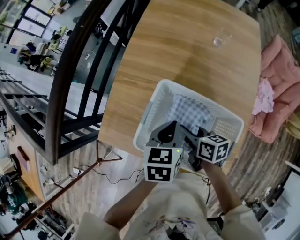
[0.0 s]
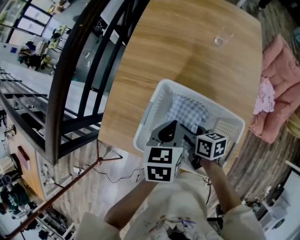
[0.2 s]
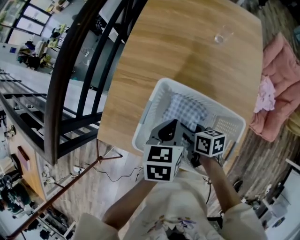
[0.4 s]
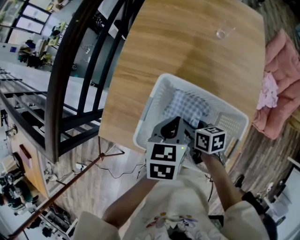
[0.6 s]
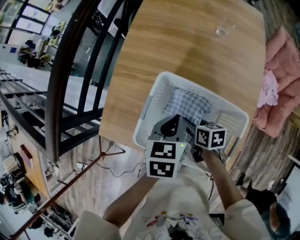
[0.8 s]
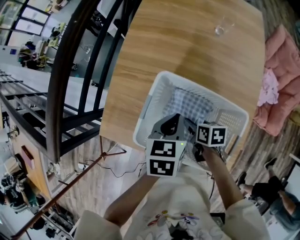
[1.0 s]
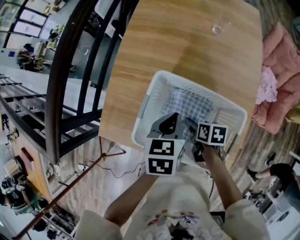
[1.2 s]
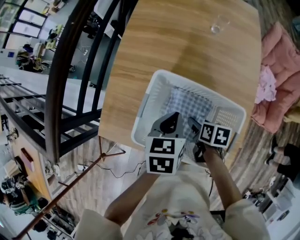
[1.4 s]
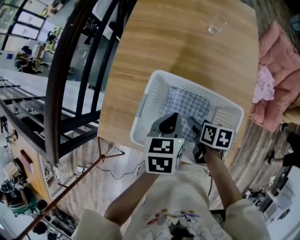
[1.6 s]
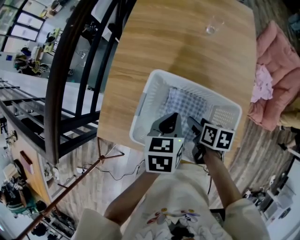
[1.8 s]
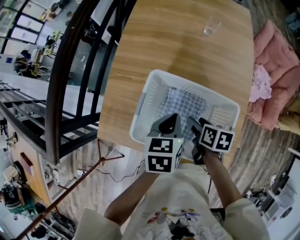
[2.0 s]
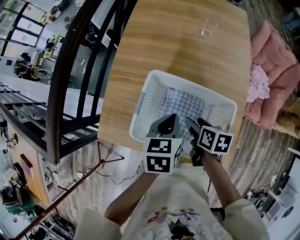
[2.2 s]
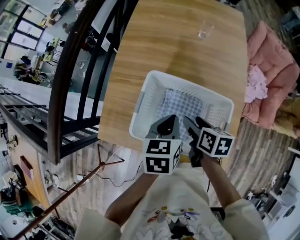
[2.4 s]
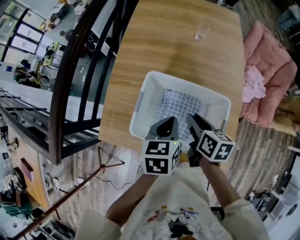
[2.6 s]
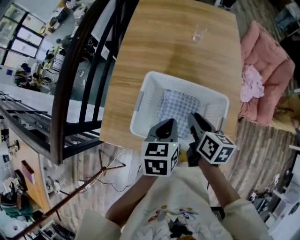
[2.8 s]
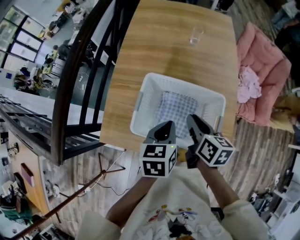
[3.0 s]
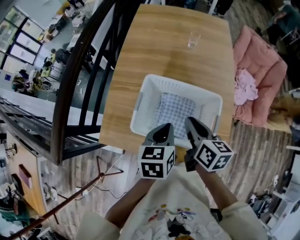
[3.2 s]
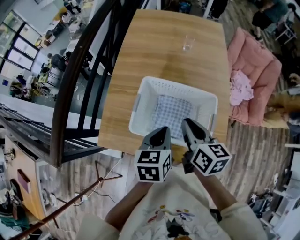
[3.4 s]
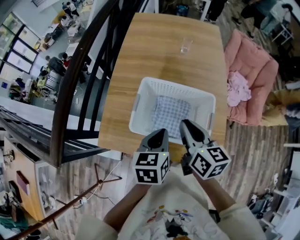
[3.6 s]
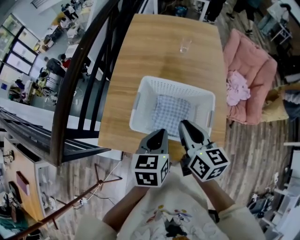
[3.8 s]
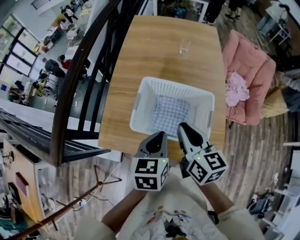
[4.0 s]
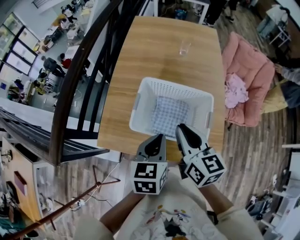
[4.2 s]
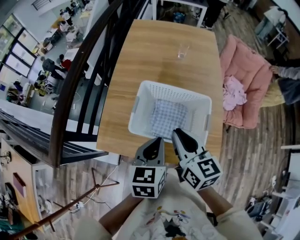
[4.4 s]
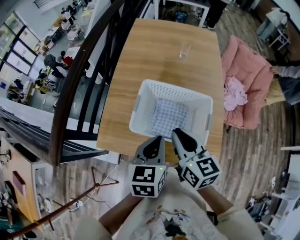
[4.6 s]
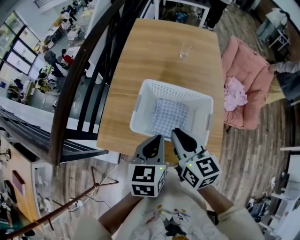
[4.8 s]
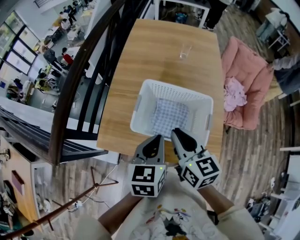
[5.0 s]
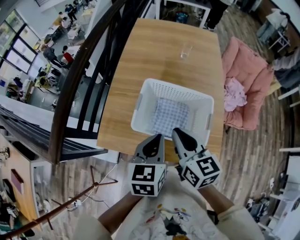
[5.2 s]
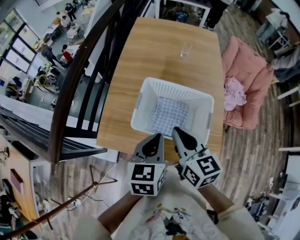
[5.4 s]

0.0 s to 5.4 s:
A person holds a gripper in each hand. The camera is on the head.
0.0 to 1.4 s: The right gripper goes about 10 cm downward and to the right, rotates some 30 degrees, and opens.
1.4 to 2.8 s: The right gripper goes about 15 cm upward, rotates approximately 30 degrees, and closes; the left gripper shifts by approximately 5 cm.
2.8 to 4.0 s: The right gripper goes about 15 cm upward and backward, and turns by some 20 degrees; the left gripper heads backward and upward, covering approximately 10 cm.
4.0 to 5.4 s: The grippers make only small movements.

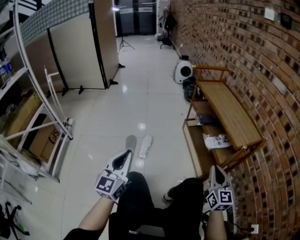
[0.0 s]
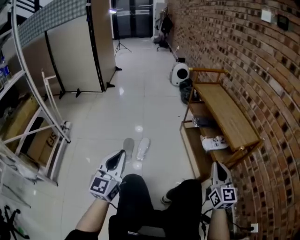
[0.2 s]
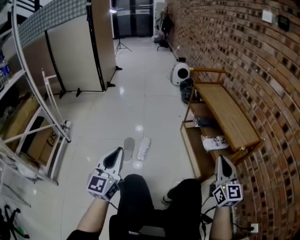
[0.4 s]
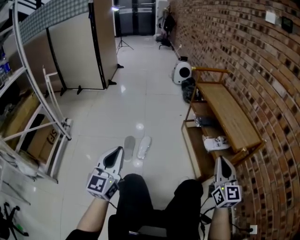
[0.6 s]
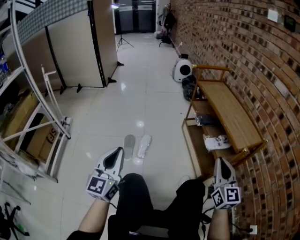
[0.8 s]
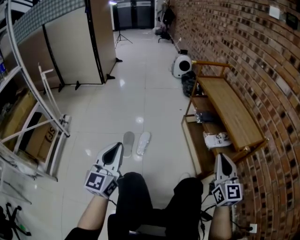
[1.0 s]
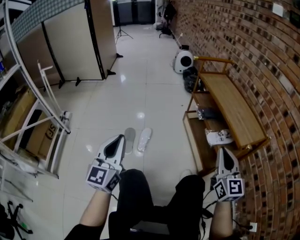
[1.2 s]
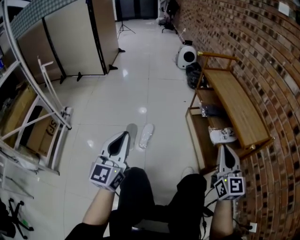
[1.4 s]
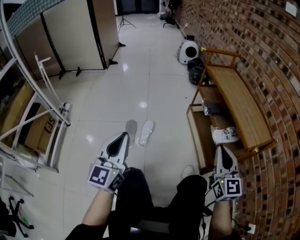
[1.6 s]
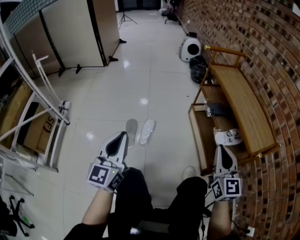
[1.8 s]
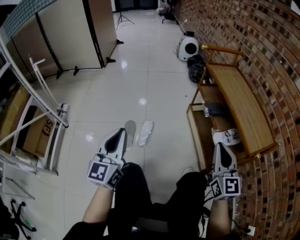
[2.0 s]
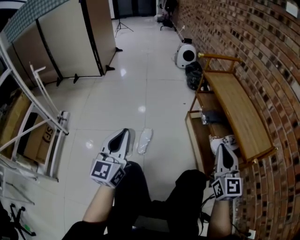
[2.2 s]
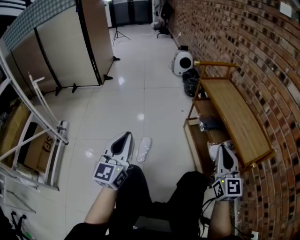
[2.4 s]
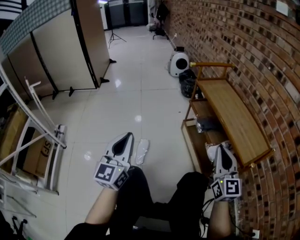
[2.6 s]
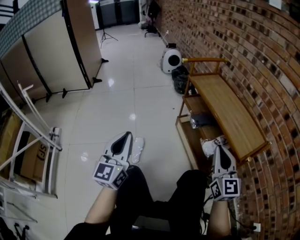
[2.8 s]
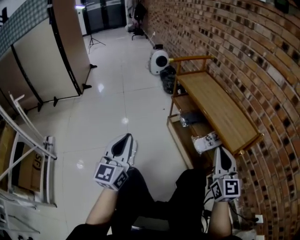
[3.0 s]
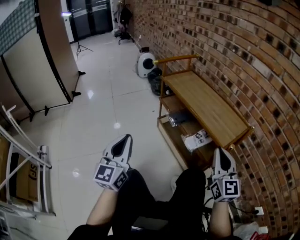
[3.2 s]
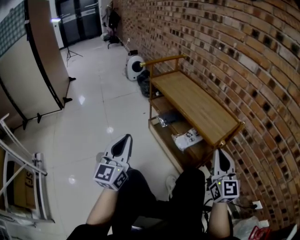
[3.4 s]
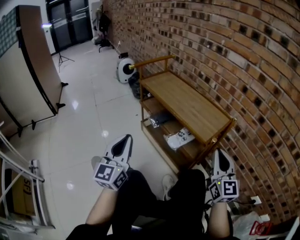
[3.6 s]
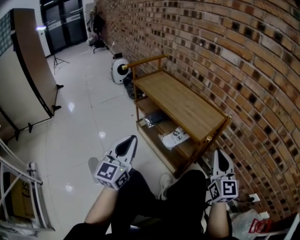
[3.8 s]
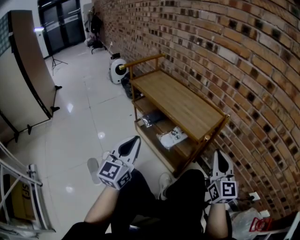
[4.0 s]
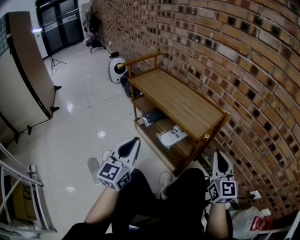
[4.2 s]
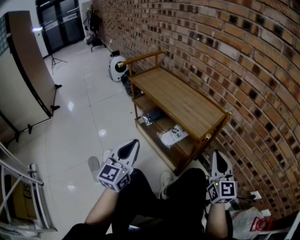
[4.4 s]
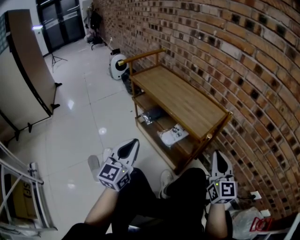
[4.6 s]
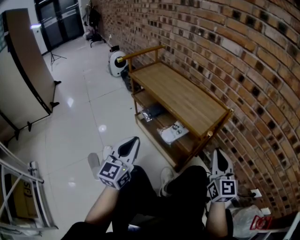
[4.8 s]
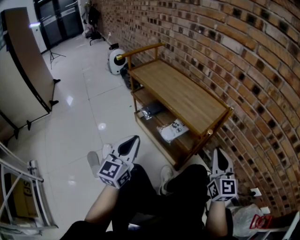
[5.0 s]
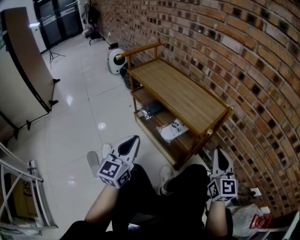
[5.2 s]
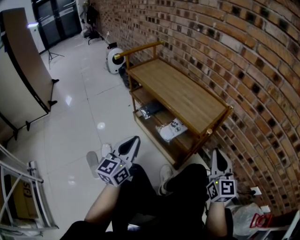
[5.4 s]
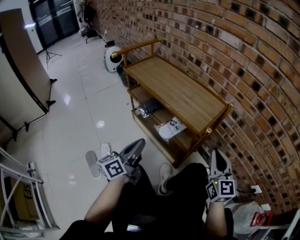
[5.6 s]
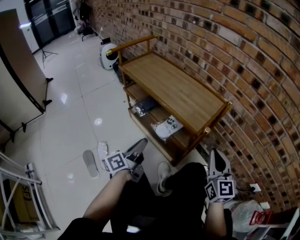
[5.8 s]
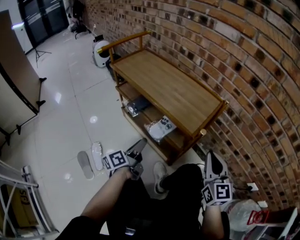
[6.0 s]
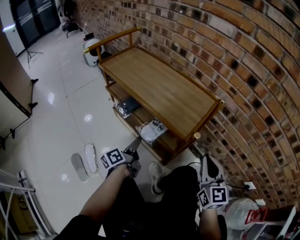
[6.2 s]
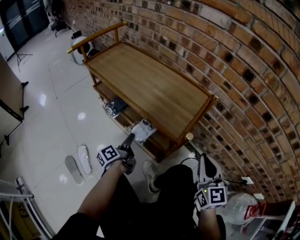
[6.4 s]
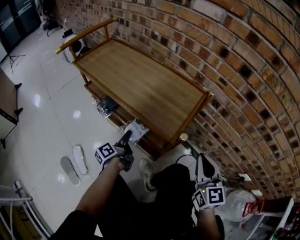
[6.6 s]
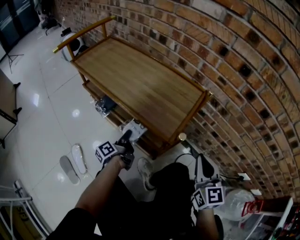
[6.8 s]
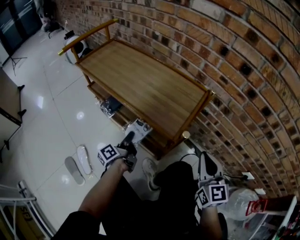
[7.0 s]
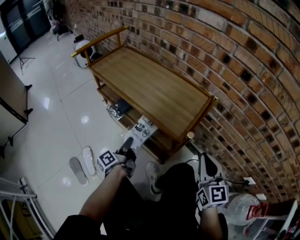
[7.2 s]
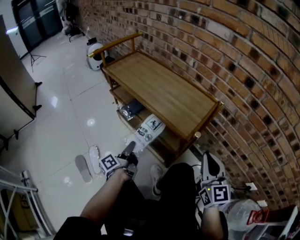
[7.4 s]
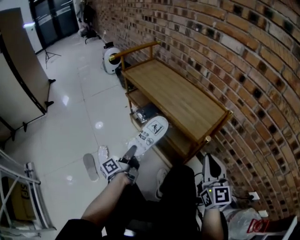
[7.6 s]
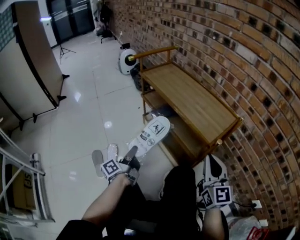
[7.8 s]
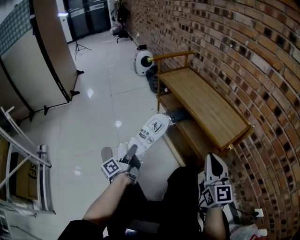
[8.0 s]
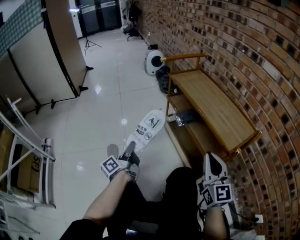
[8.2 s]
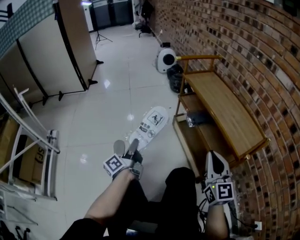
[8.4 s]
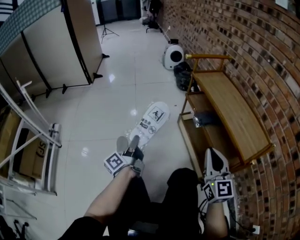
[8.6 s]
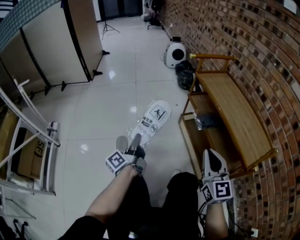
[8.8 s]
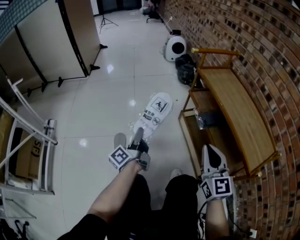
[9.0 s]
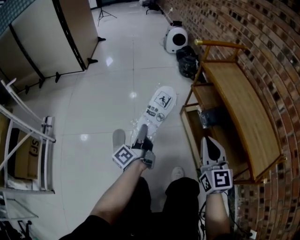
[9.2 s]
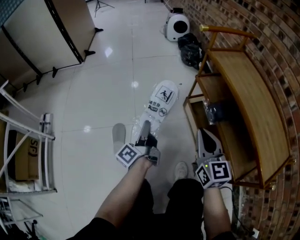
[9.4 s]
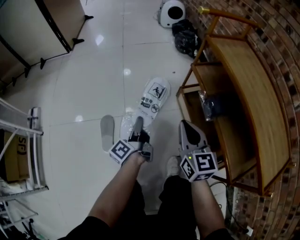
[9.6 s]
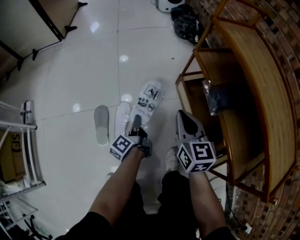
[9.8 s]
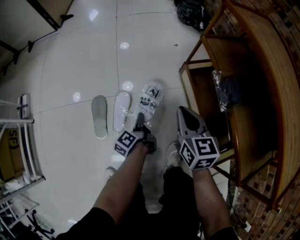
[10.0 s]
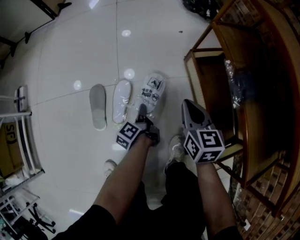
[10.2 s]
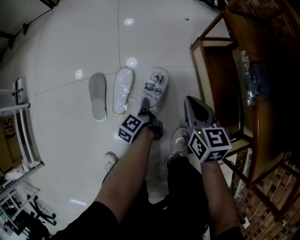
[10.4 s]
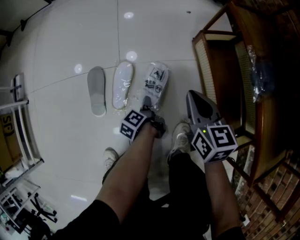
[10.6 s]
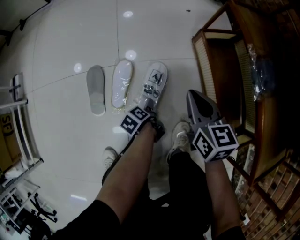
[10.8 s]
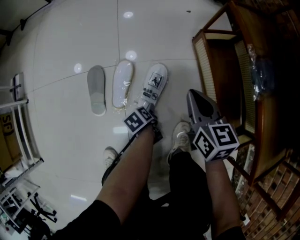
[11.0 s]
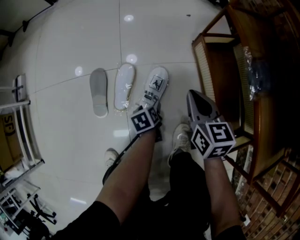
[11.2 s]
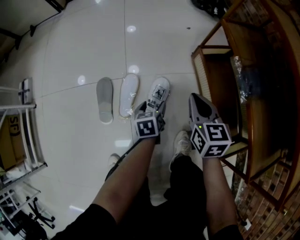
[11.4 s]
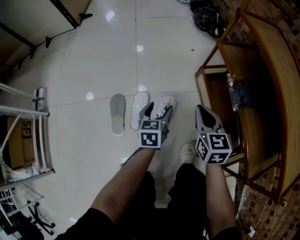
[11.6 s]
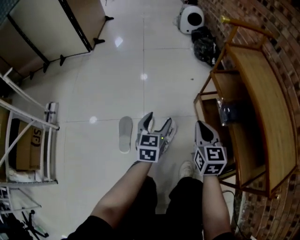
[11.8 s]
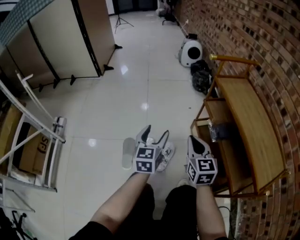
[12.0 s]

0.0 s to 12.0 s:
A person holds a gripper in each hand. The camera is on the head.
0.0 to 1.6 s: The right gripper heads forward, to the left and upward, covering about 10 cm. The left gripper moves forward, about 5 cm.
1.6 to 3.0 s: The right gripper is displaced to the right by some 5 cm; the left gripper heads forward and to the right, covering approximately 15 cm.
3.0 to 4.4 s: The two grippers go approximately 15 cm to the right. The left gripper rotates some 20 degrees.
4.4 to 6.0 s: The left gripper shifts roughly 20 cm downward and forward, rolls counterclockwise, seen from behind, by about 60 degrees, and opens, while the right gripper shifts by about 5 cm.
6.0 to 7.6 s: The left gripper shifts approximately 5 cm to the left, goes forward and returns, about 10 cm each way, and swivels approximately 20 degrees.
7.6 to 9.0 s: The right gripper shifts by roughly 30 cm, and turns by approximately 30 degrees; the left gripper ends up about 25 cm from where it was, and changes its angle by roughly 30 degrees.
9.0 to 10.4 s: The right gripper moves downward and forward, roughly 35 cm, and angles its fingers downward, by roughly 30 degrees, while the left gripper goes some 40 cm downward, and tips its fingers downward by approximately 40 degrees.
10.4 to 12.0 s: The right gripper travels upward by about 25 cm, and turns by about 20 degrees. Meanwhile the left gripper is displaced upward by roughly 40 cm, rolls clockwise, seen from behind, by roughly 80 degrees, and opens its fingers.

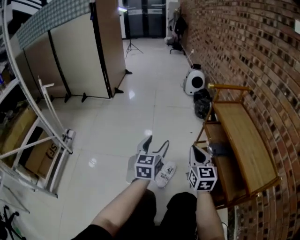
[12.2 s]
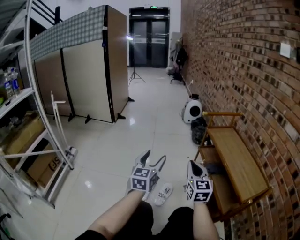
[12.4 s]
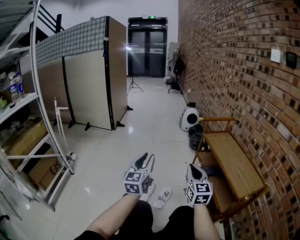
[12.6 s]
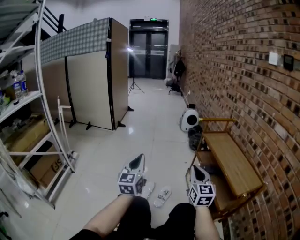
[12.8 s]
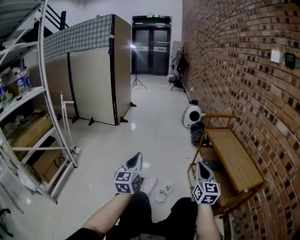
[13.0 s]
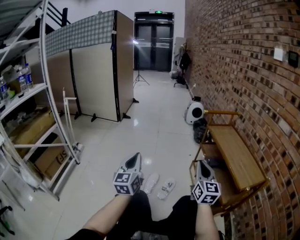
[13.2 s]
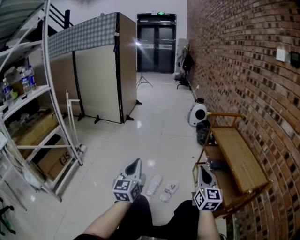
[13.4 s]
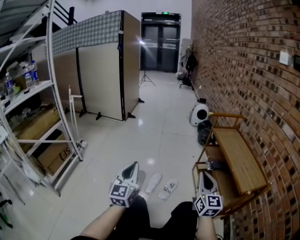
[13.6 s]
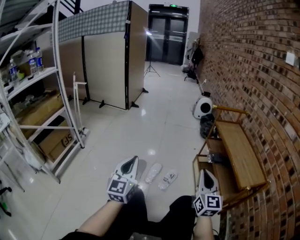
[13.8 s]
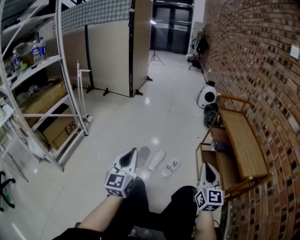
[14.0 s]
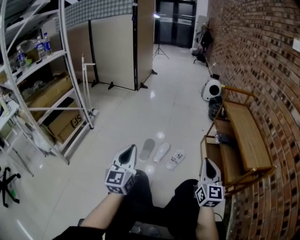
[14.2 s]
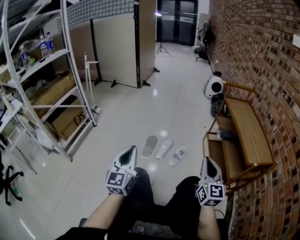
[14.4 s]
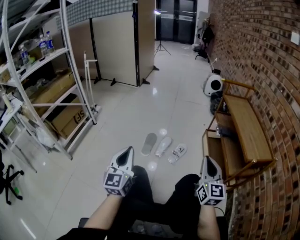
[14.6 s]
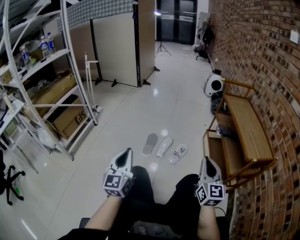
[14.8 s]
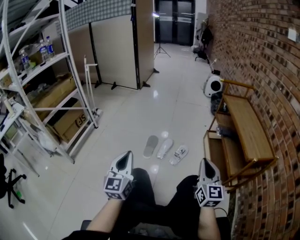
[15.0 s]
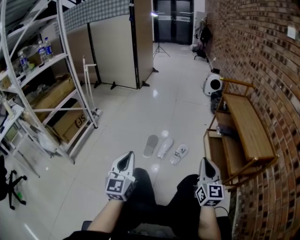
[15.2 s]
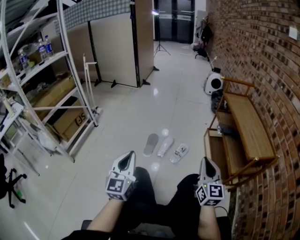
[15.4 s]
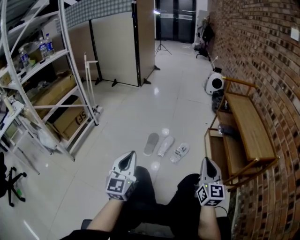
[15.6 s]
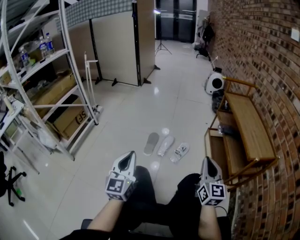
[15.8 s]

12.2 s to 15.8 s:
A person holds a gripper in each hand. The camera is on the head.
12.2 to 14.0 s: The right gripper travels backward by approximately 25 cm. The left gripper travels backward and to the left by roughly 30 cm, turns by some 20 degrees, and closes its fingers.
14.0 to 15.8 s: The left gripper goes about 10 cm backward; the right gripper goes approximately 5 cm backward.

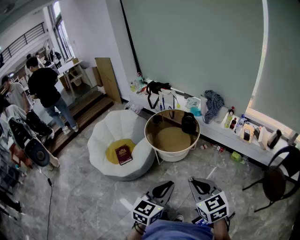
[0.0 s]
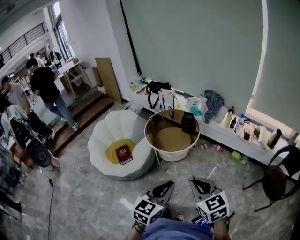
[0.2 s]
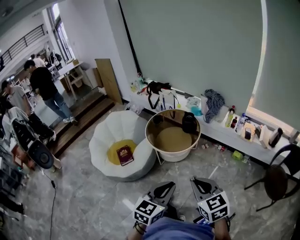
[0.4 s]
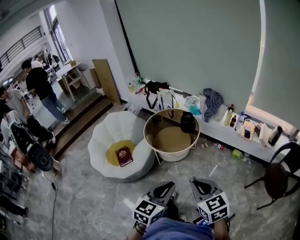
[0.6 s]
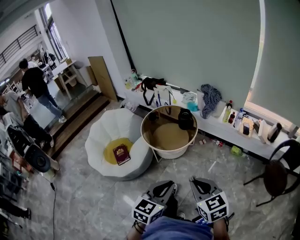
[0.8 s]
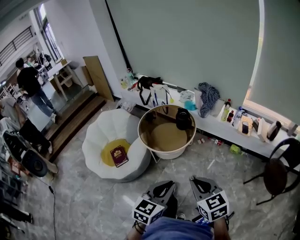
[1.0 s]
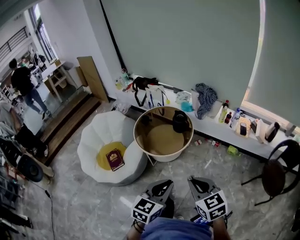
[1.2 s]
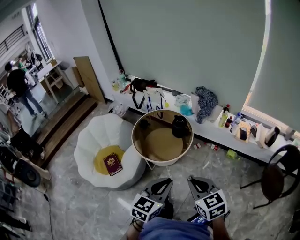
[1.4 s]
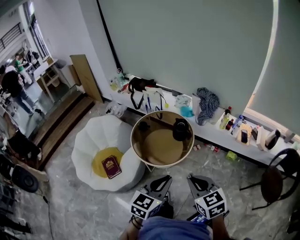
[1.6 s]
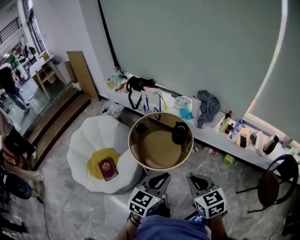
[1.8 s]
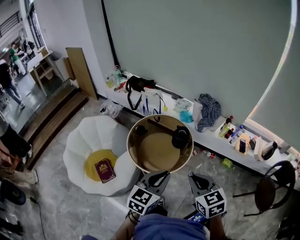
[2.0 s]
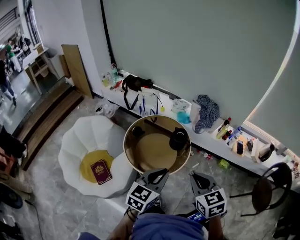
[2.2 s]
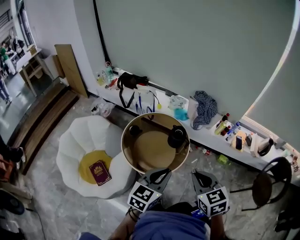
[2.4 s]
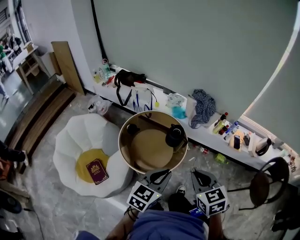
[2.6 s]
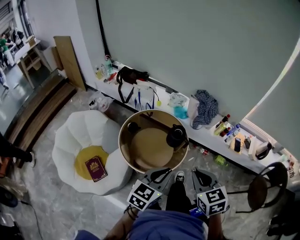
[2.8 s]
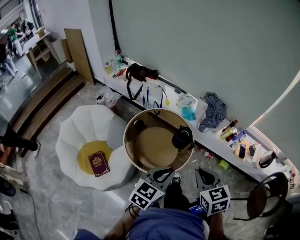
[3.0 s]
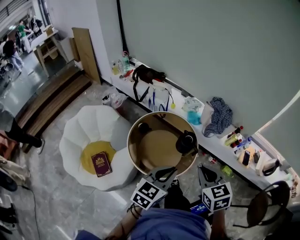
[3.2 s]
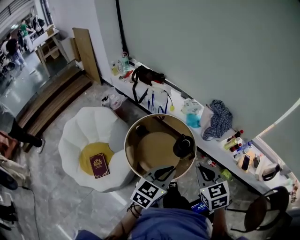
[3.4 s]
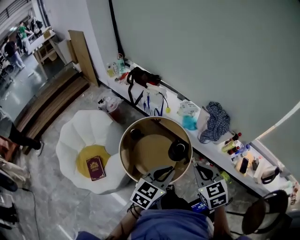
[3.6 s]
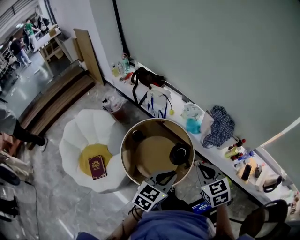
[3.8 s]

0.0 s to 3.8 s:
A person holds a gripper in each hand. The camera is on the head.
0.0 to 1.2 s: Both grippers move forward, roughly 10 cm.
1.2 to 2.6 s: Both grippers travel together forward, roughly 25 cm.
2.6 to 3.8 s: The two grippers go some 20 cm forward.
